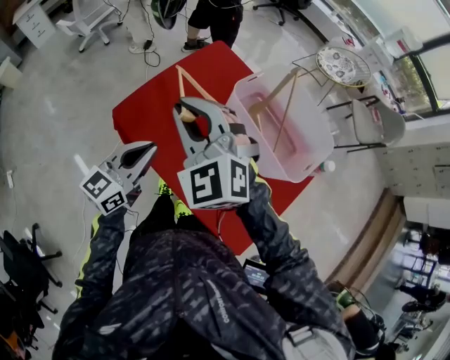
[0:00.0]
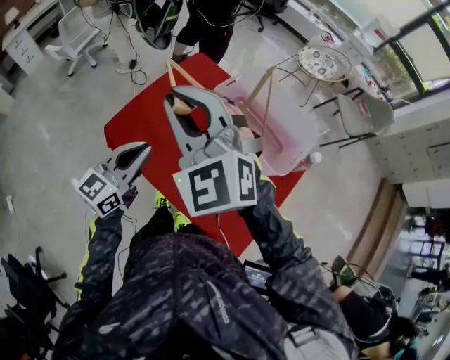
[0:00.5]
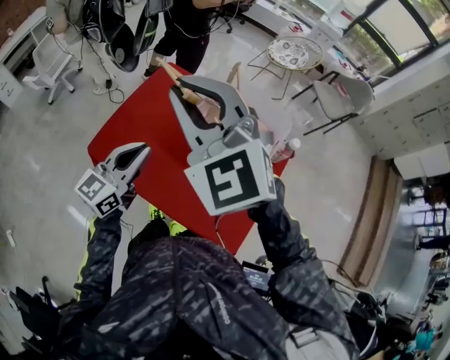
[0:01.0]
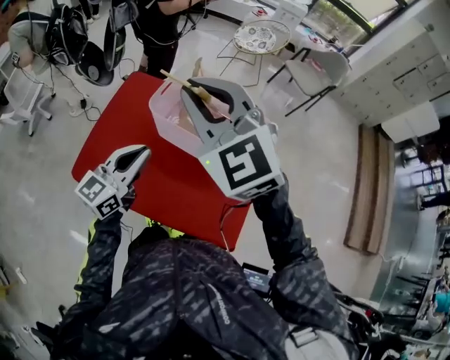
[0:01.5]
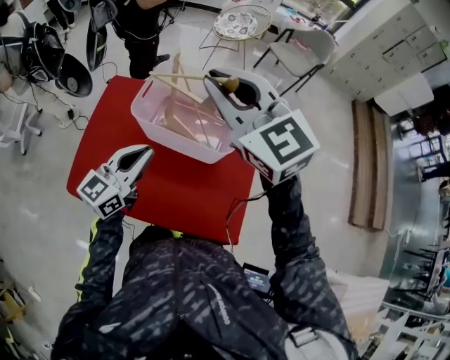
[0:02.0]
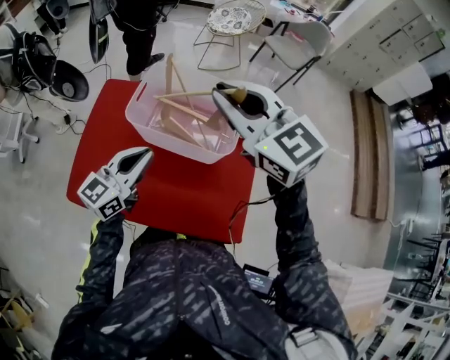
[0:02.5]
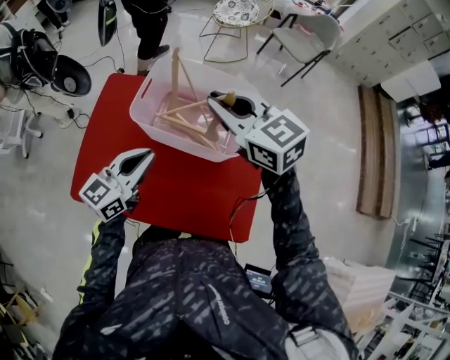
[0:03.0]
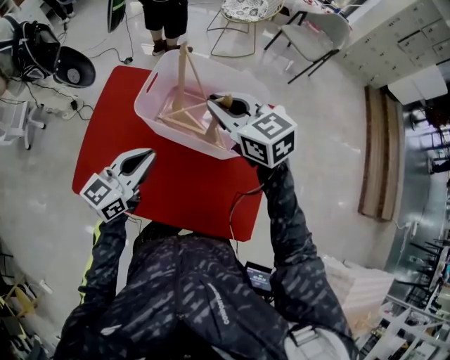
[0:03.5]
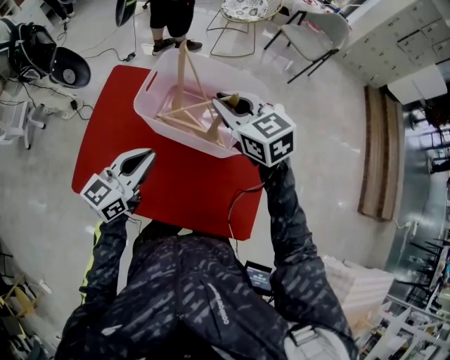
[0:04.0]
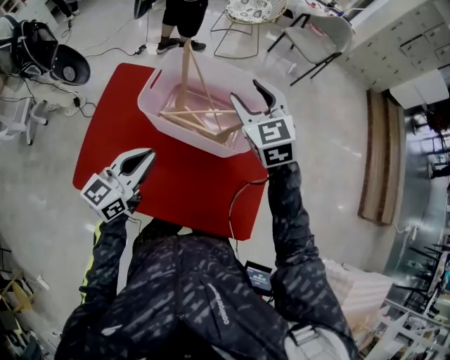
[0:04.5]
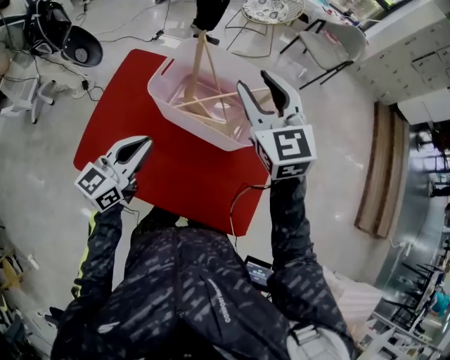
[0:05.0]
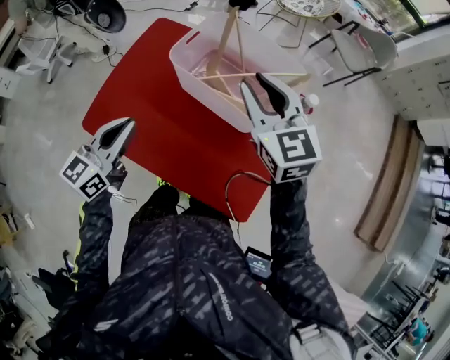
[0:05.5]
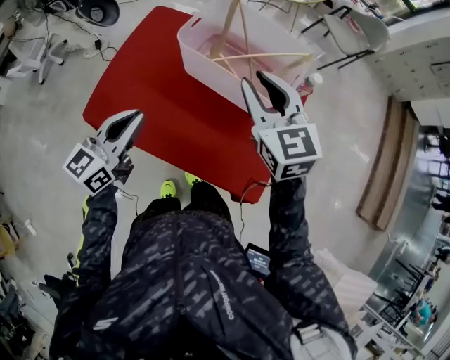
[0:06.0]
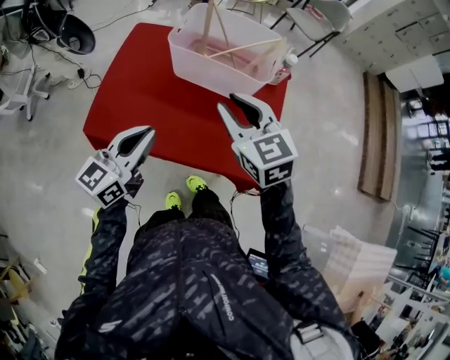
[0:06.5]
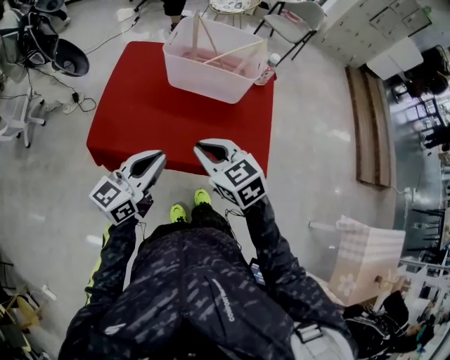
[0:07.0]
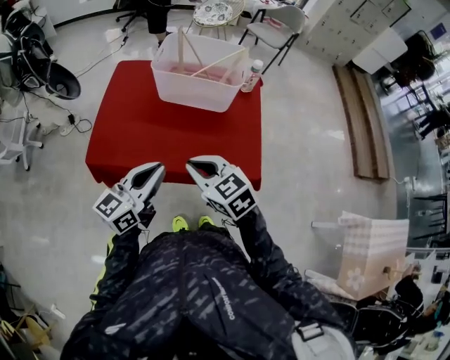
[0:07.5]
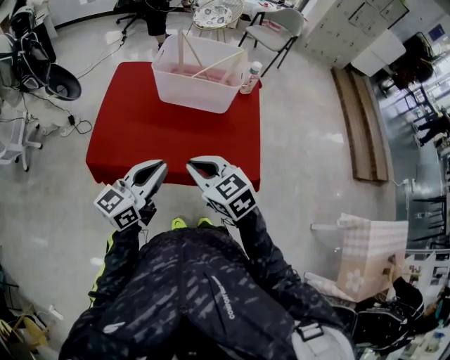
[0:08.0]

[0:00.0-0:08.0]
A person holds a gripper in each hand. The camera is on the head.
0:00.0 to 0:02.0: The left gripper heads to the right, covering approximately 20 cm, and turns by roughly 30 degrees; the right gripper heads to the right and upward, covering some 30 cm, and swivels some 30 degrees.
0:02.0 to 0:04.0: The right gripper goes roughly 20 cm downward and forward, and rotates some 30 degrees. The left gripper moves downward, about 5 cm.
0:04.0 to 0:06.0: The right gripper travels backward by some 15 cm, and opens and closes again. The left gripper is displaced backward and to the left by roughly 15 cm.
0:06.0 to 0:08.0: The right gripper moves backward, some 30 cm, and closes; the left gripper moves backward, about 15 cm, and changes its angle by roughly 20 degrees.

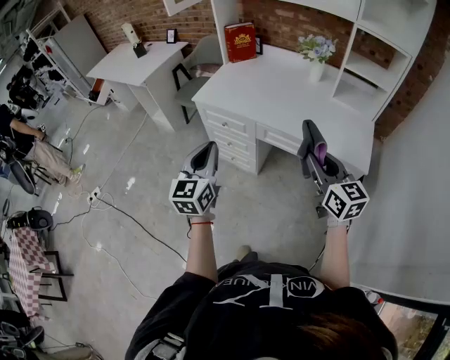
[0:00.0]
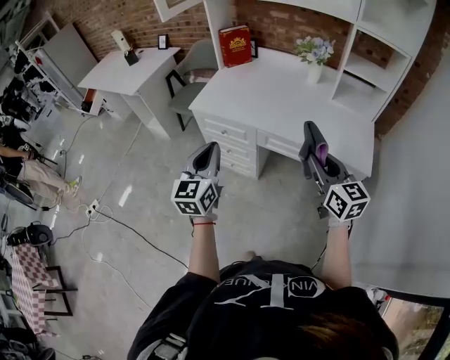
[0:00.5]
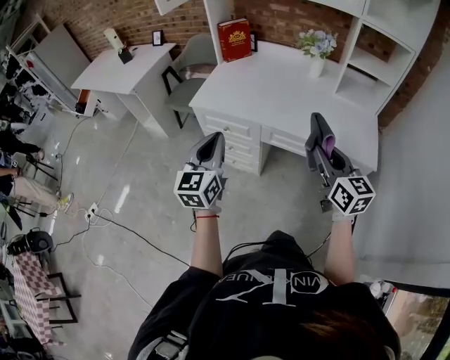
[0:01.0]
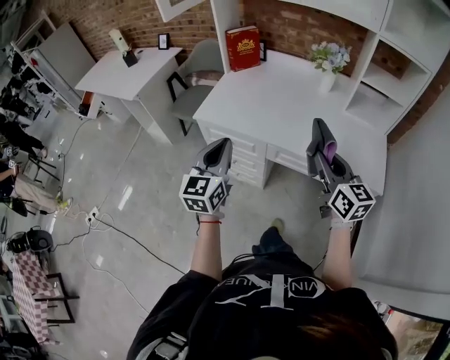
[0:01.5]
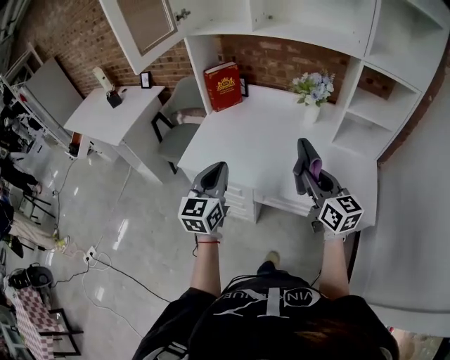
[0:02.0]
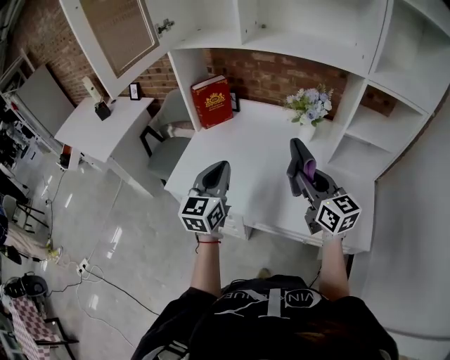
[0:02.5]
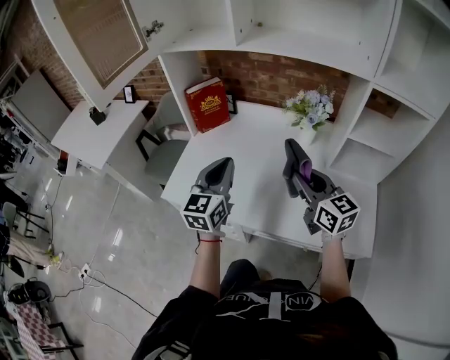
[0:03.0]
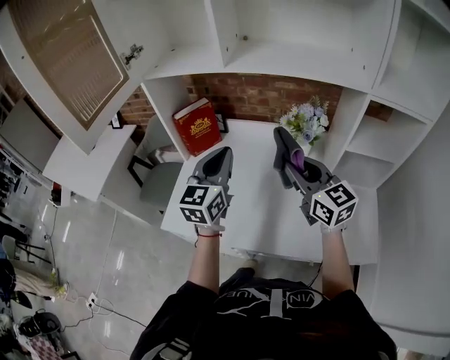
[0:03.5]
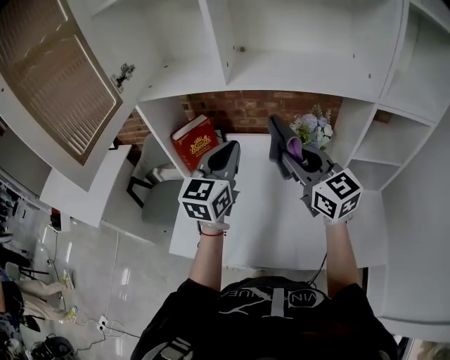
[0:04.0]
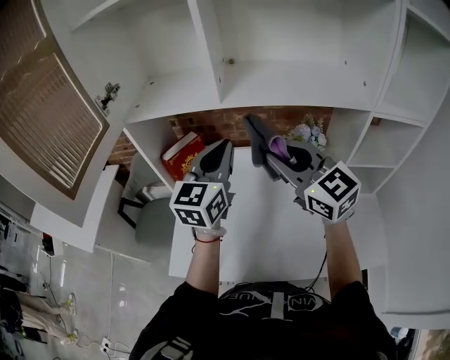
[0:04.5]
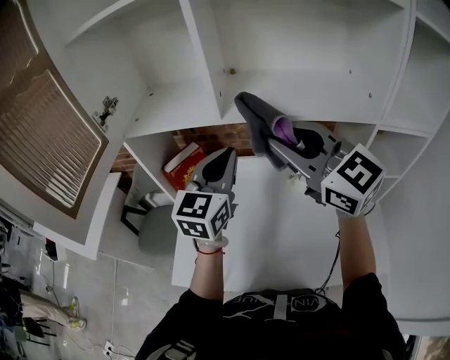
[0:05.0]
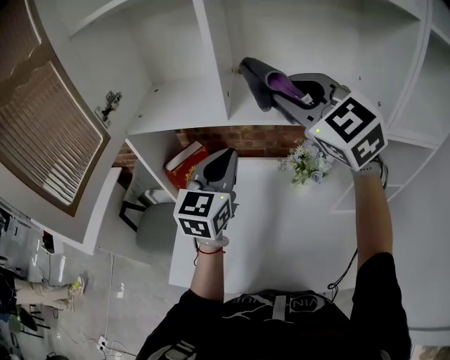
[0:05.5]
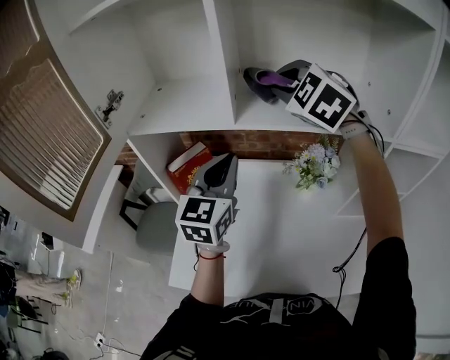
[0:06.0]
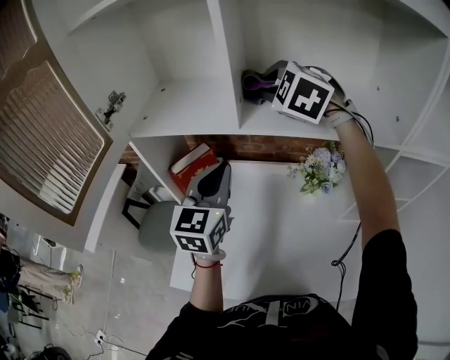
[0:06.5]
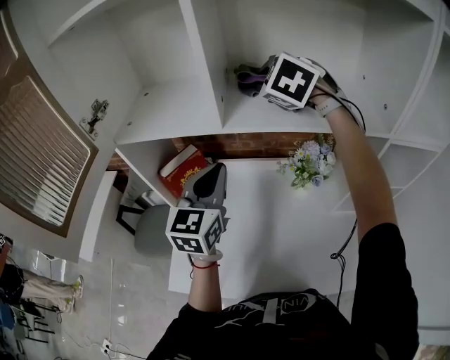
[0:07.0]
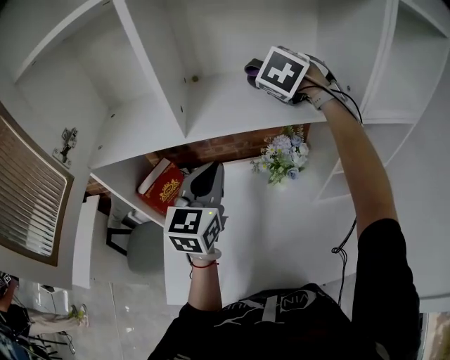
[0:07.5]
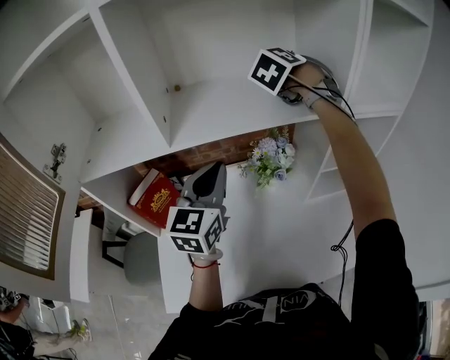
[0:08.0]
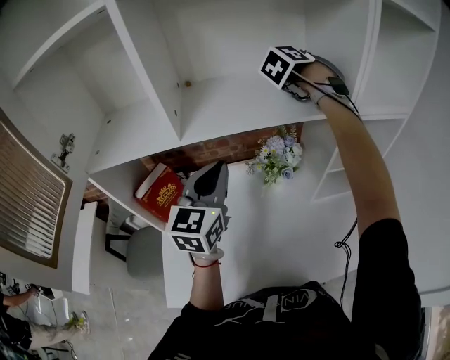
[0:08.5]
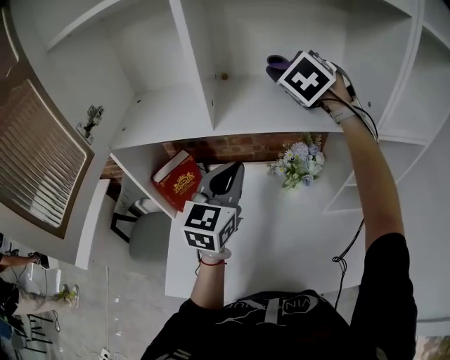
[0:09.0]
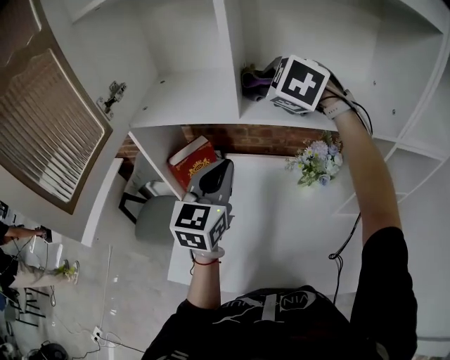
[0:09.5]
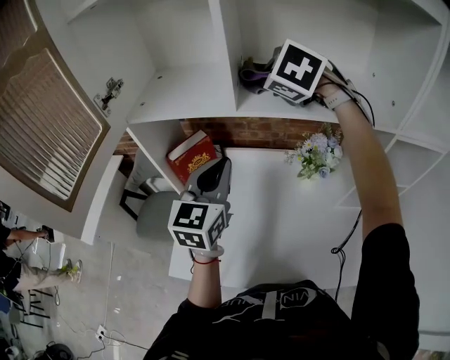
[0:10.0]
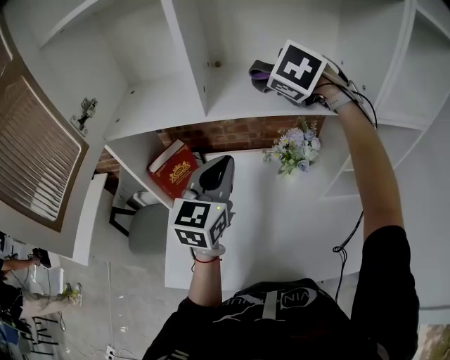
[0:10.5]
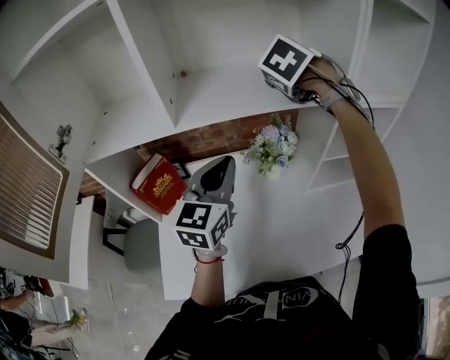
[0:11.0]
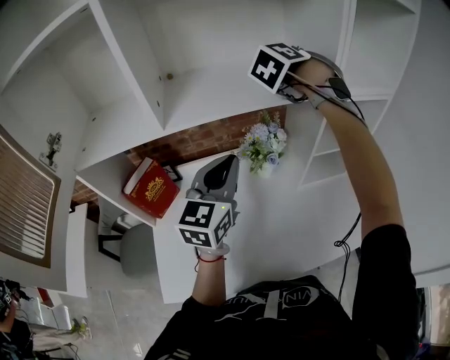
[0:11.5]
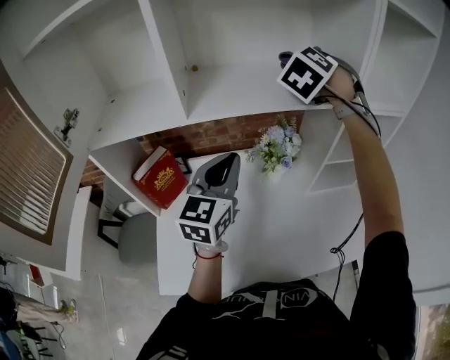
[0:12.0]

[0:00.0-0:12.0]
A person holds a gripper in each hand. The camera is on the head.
0:00.0 to 0:02.0: The grippers both shift forward by roughly 25 cm.
0:02.0 to 0:04.0: Both grippers travel together forward, about 30 cm.
0:04.0 to 0:06.0: The left gripper goes about 5 cm forward, while the right gripper is displaced forward and upward by approximately 25 cm, and rolls counterclockwise, seen from behind, by about 50 degrees.
0:06.0 to 0:08.0: The right gripper ends up approximately 25 cm from where it was, and changes its angle by roughly 50 degrees, while the left gripper changes place by roughly 10 cm.
0:08.0 to 0:10.0: The left gripper changes place by about 10 cm; the right gripper moves some 25 cm, and changes its angle by roughly 50 degrees.
0:10.0 to 0:12.0: The right gripper ends up approximately 25 cm from where it was, and changes its angle by some 40 degrees. The left gripper ends up about 10 cm from where it was.

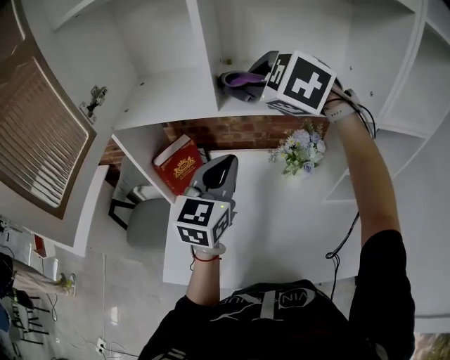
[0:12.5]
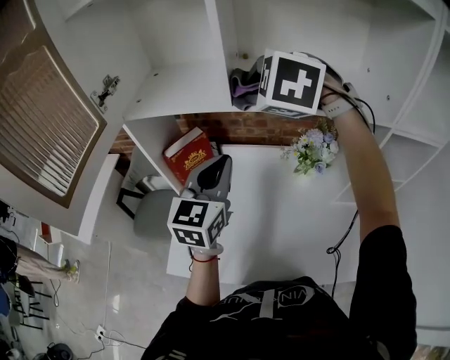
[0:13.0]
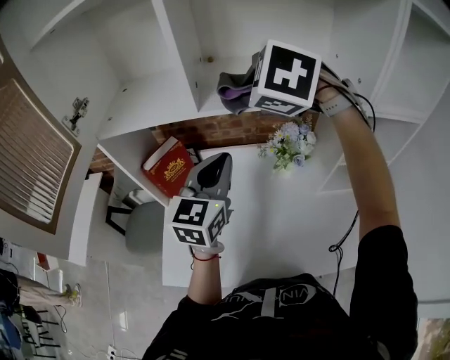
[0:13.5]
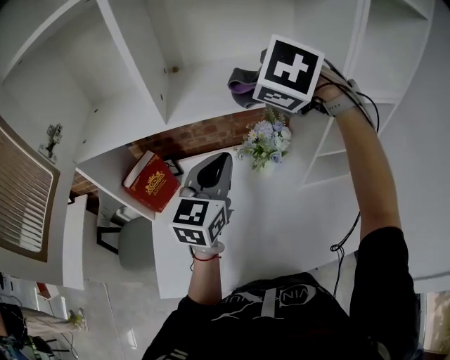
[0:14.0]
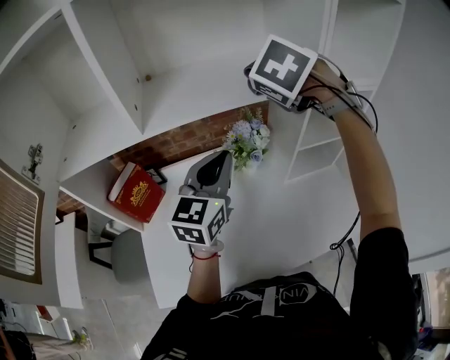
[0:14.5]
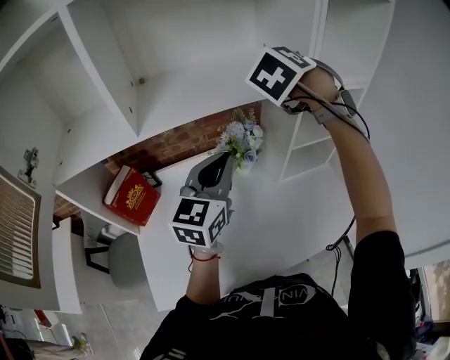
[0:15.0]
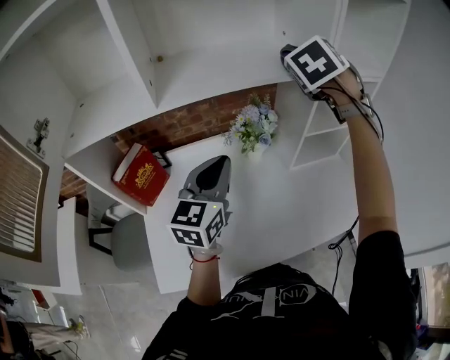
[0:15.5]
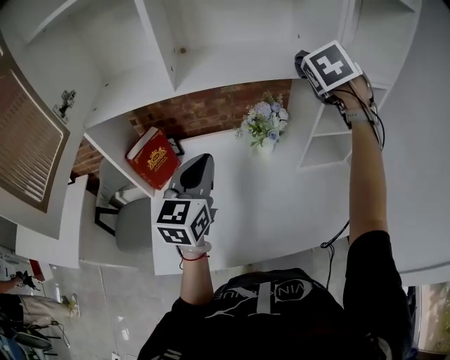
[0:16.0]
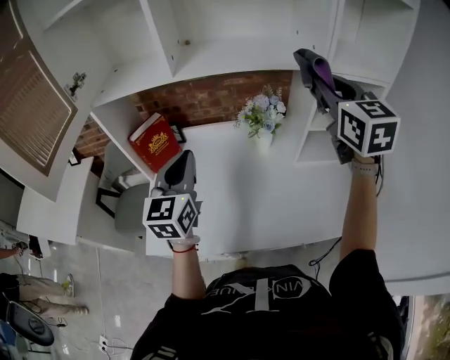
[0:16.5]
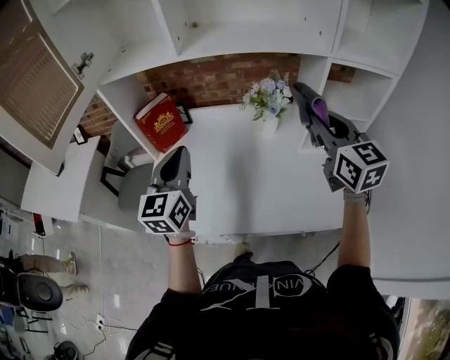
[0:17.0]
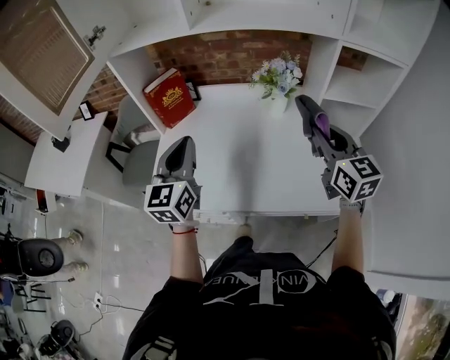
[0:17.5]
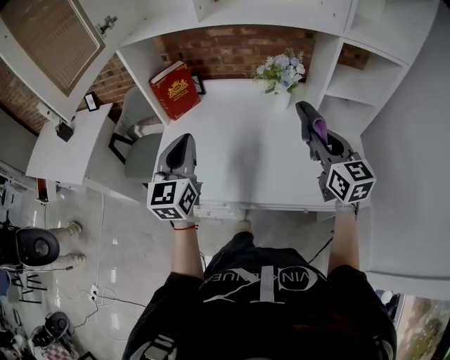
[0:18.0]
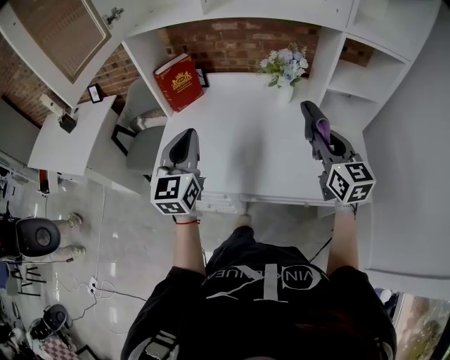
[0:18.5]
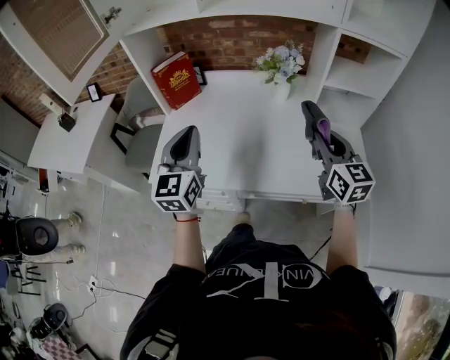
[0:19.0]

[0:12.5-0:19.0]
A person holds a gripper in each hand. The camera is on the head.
0:12.5 to 0:14.5: The left gripper moves roughly 15 cm. Meanwhile the right gripper moves roughly 20 cm, and swivels roughly 40 degrees.
0:14.5 to 0:17.0: The right gripper shifts by roughly 20 cm, and points its fingers roughly 40 degrees further upward; the left gripper shifts by some 20 cm, and changes its angle by approximately 30 degrees.
0:17.0 to 0:19.0: The right gripper heads downward and backward, covering approximately 15 cm. The left gripper goes approximately 10 cm backward.
